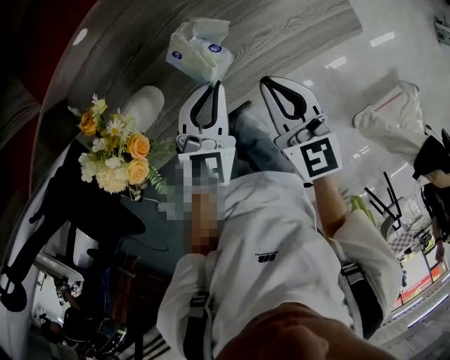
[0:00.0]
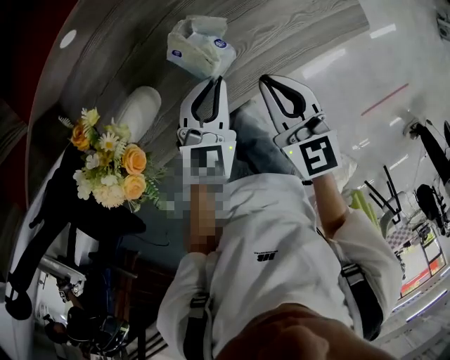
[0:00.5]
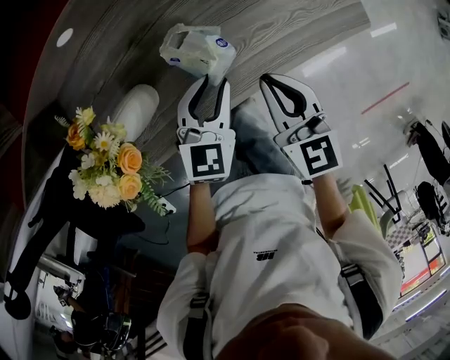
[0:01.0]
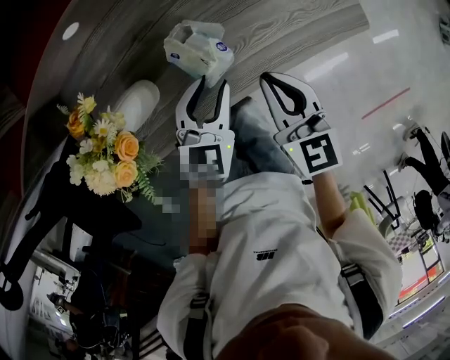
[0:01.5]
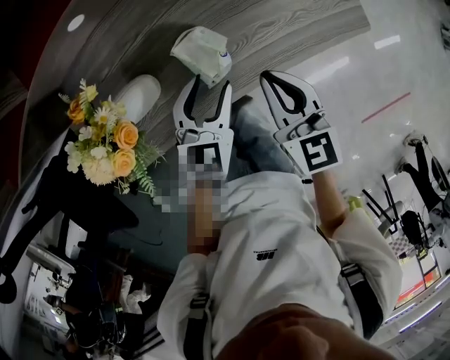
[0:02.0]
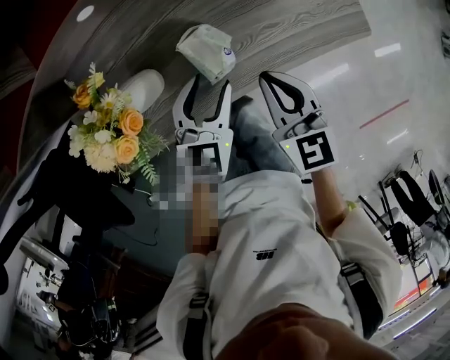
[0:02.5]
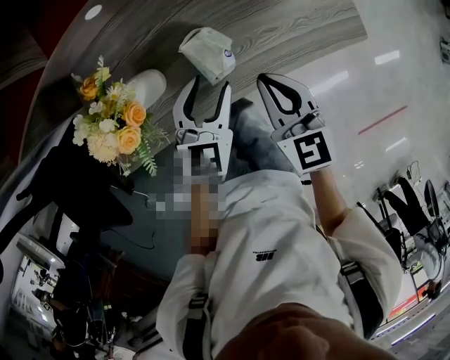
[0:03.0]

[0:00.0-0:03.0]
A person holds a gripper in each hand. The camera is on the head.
0:00.0 to 0:01.5: The left gripper opens its fingers.
0:01.5 to 0:03.0: The grippers stay close to where they were, moving slightly.

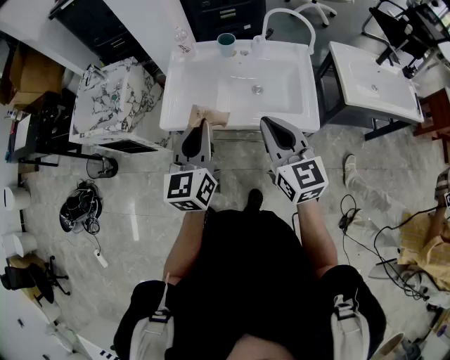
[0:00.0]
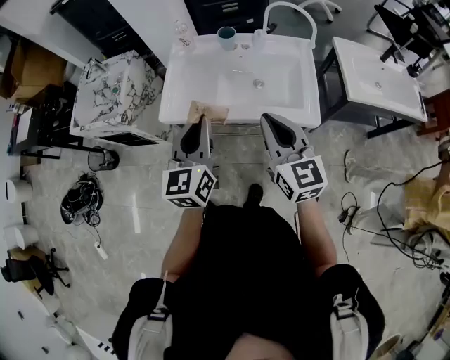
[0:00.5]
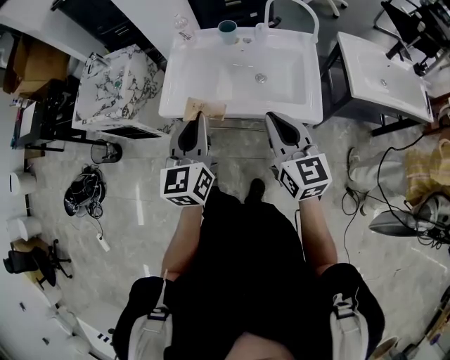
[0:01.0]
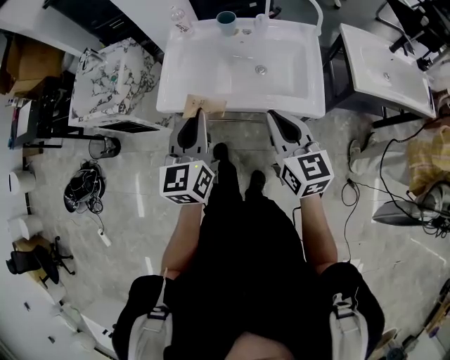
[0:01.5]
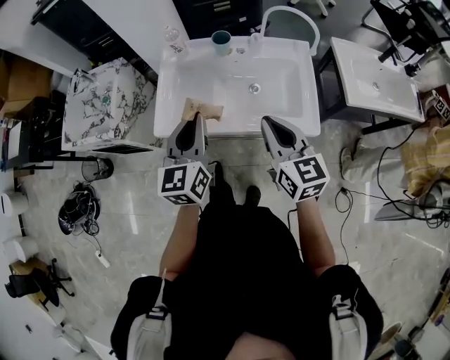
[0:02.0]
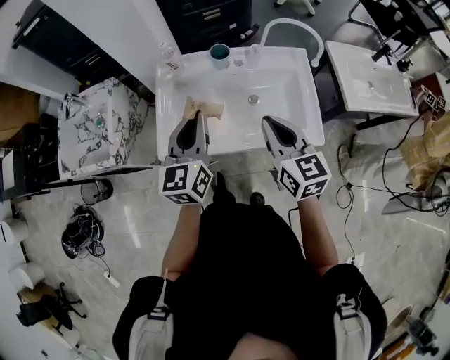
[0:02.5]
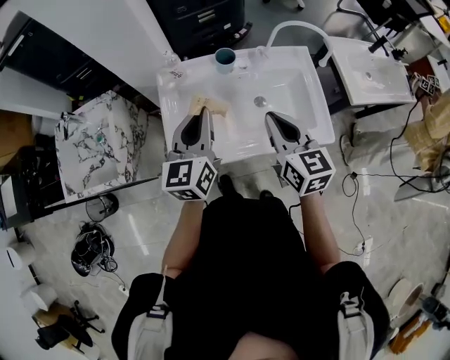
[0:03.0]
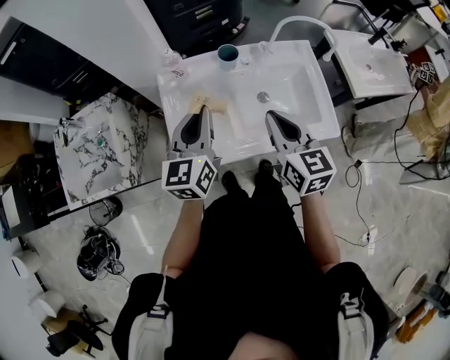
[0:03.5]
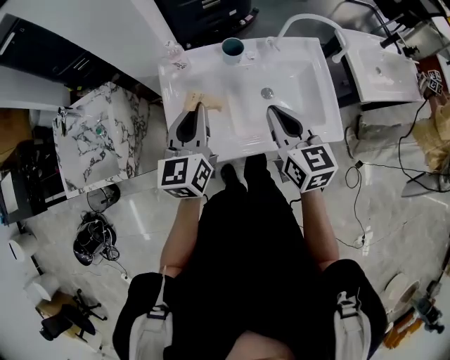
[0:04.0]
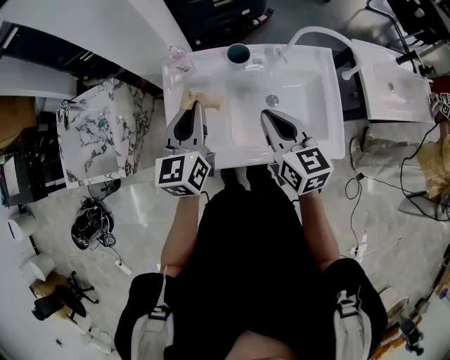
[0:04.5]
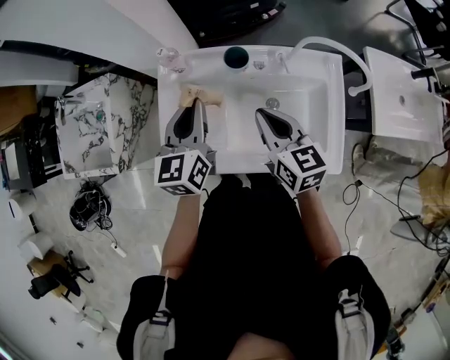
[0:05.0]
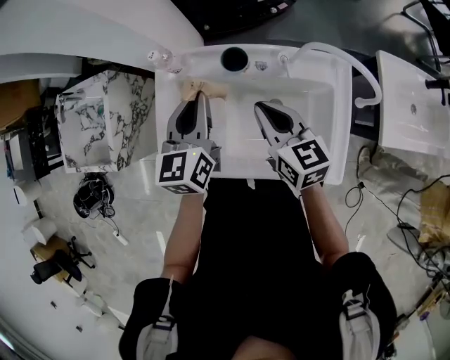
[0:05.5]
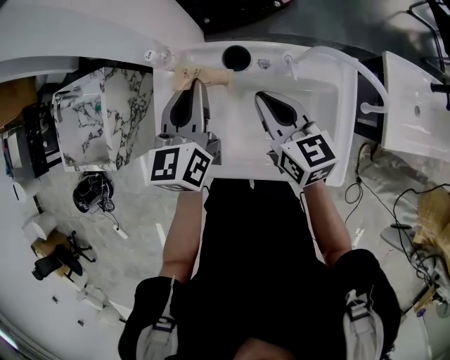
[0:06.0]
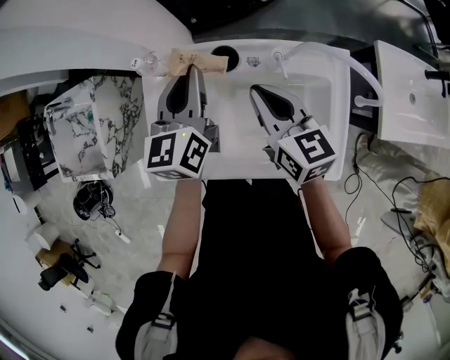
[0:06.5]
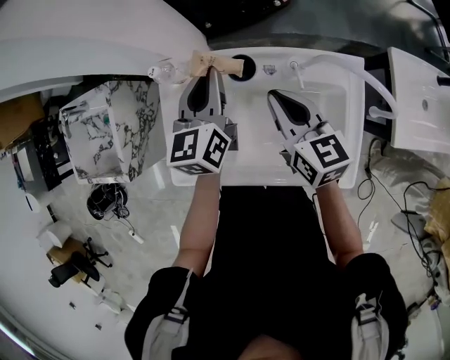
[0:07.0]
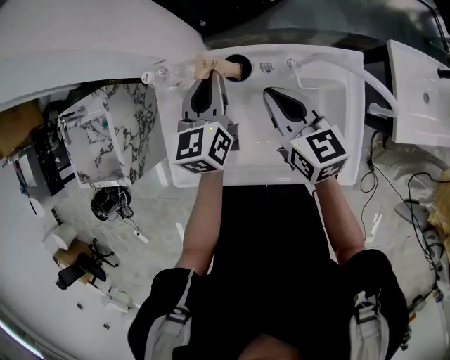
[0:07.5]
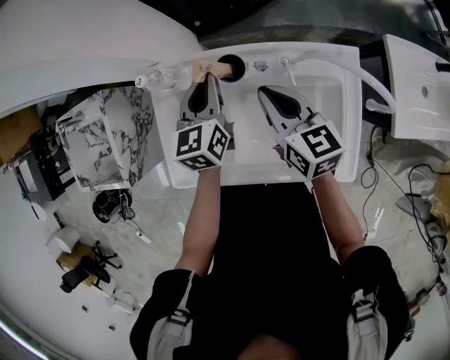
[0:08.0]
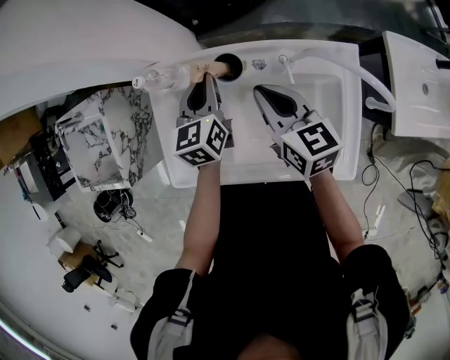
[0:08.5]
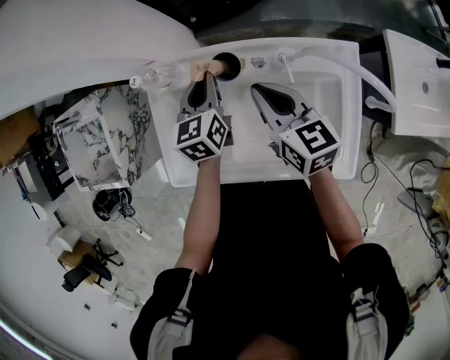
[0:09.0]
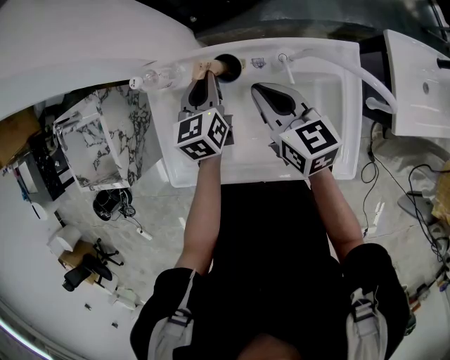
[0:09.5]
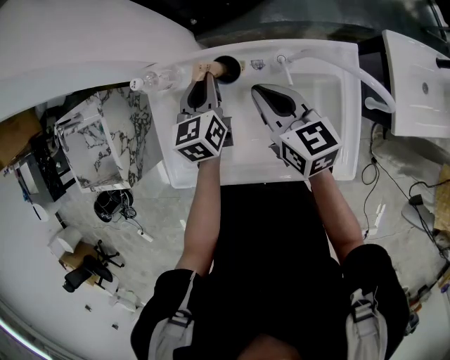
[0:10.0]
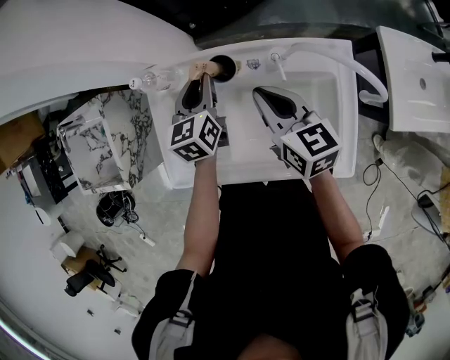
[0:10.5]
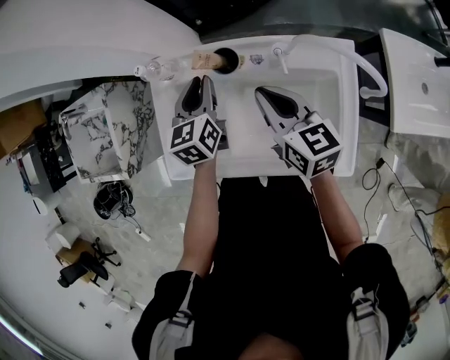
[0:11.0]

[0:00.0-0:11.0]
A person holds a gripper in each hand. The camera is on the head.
0:00.0 to 0:02.0: Both grippers travel together forward, about 5 cm.
0:02.0 to 0:03.5: The grippers both shift forward and to the left by some 15 cm.
0:03.5 to 0:05.5: The left gripper moves forward and to the right, approximately 15 cm. The right gripper is displaced forward and downward by about 15 cm, and turns by some 20 degrees.
0:05.5 to 0:07.5: Both grippers move forward, roughly 5 cm.
0:07.5 to 0:09.0: The left gripper is displaced downward by approximately 5 cm.
0:09.0 to 0:11.0: There are only small adjustments of the grippers.

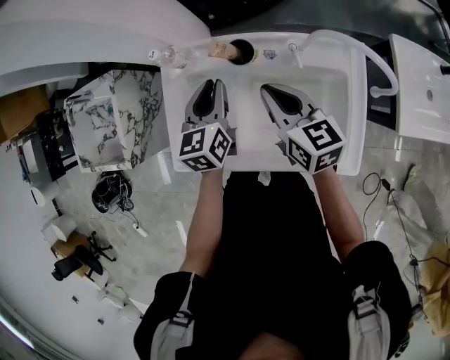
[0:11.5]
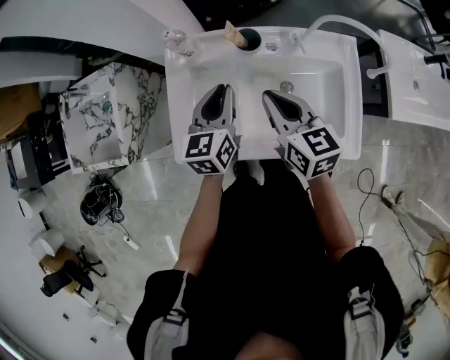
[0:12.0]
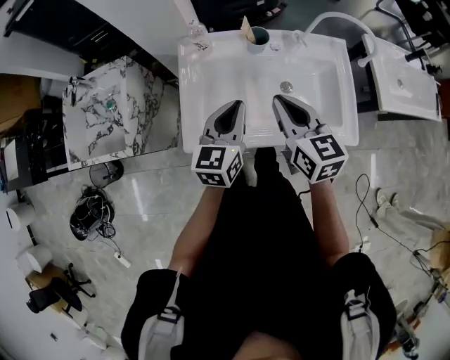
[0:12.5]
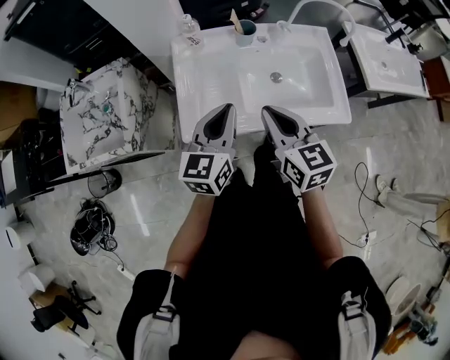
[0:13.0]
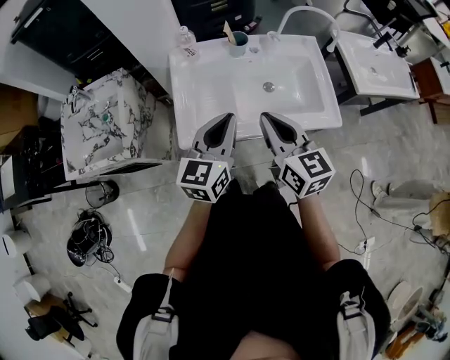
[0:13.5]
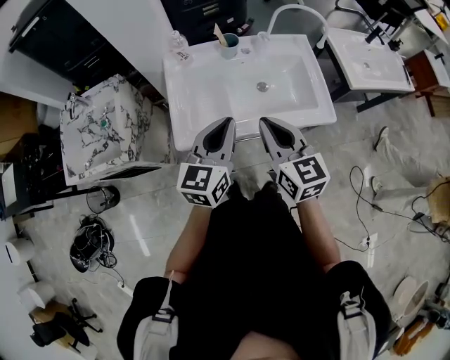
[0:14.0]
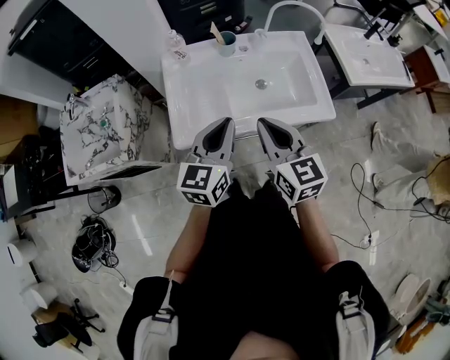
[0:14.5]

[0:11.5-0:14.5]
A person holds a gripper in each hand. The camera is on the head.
0:11.5 to 0:13.0: The left gripper is displaced backward by some 25 cm, and swivels about 30 degrees. Meanwhile the right gripper travels backward and to the left by about 25 cm.
0:13.0 to 0:14.5: Both grippers travel together backward, about 5 cm.

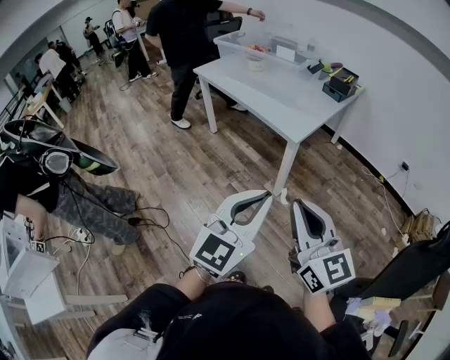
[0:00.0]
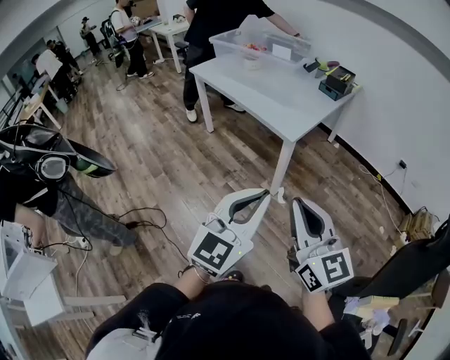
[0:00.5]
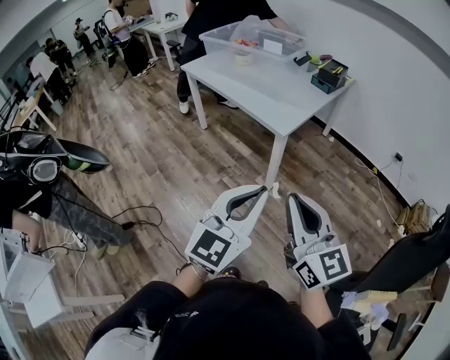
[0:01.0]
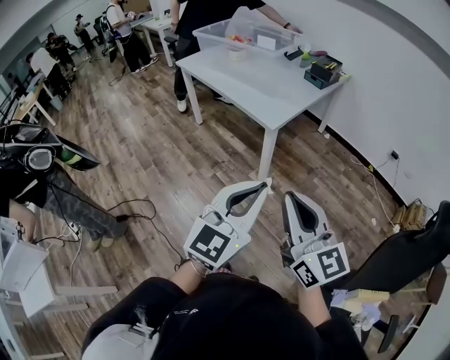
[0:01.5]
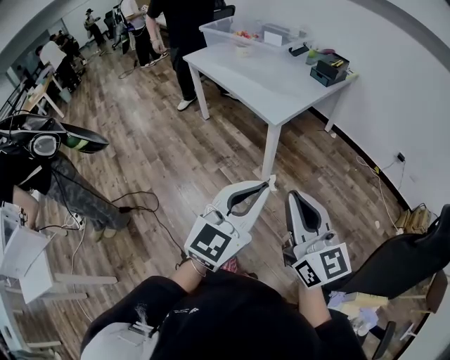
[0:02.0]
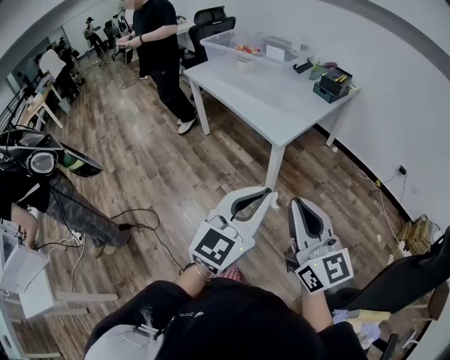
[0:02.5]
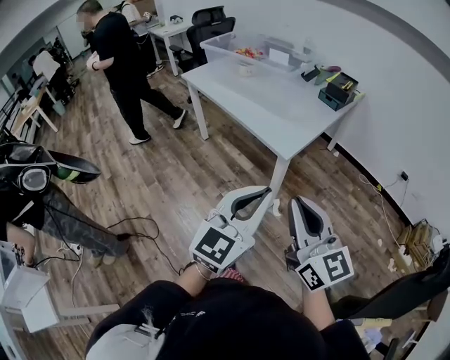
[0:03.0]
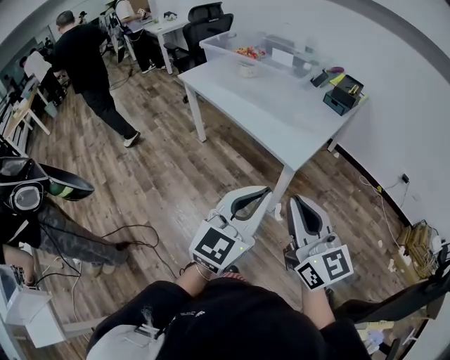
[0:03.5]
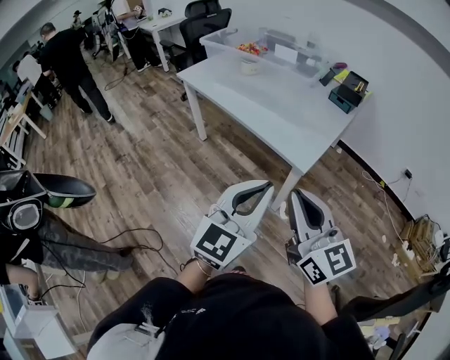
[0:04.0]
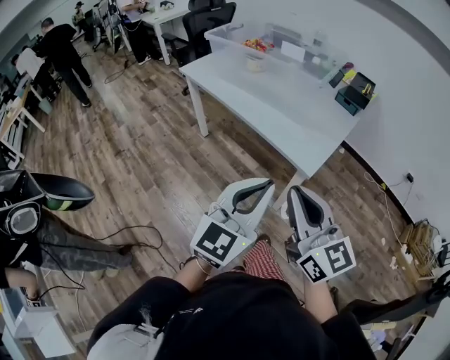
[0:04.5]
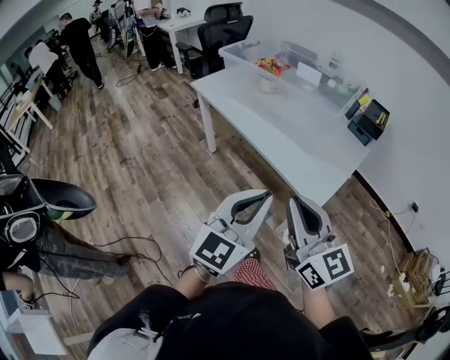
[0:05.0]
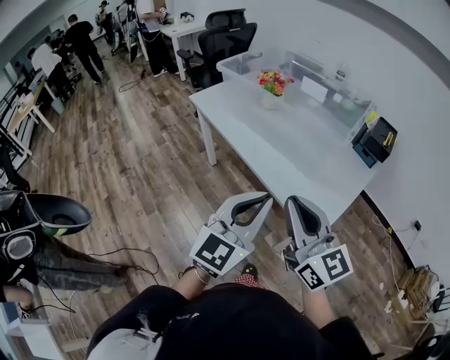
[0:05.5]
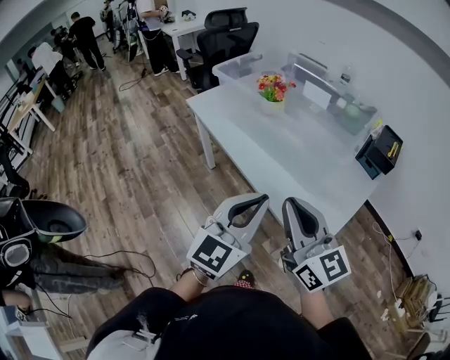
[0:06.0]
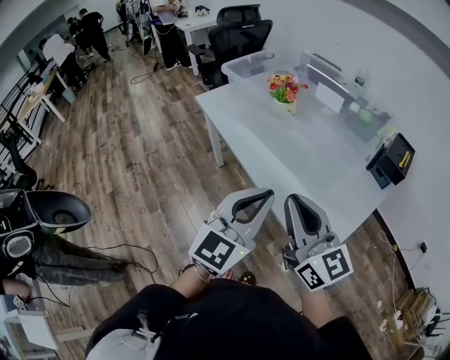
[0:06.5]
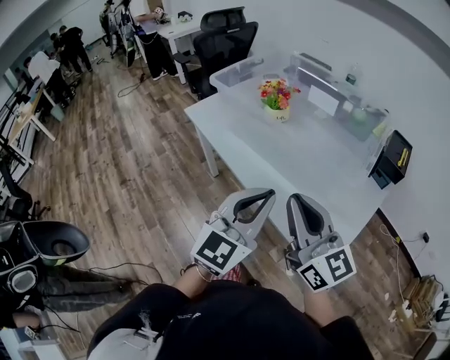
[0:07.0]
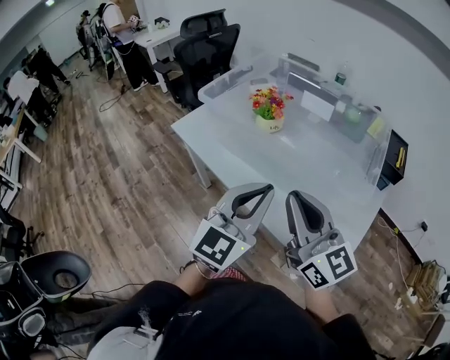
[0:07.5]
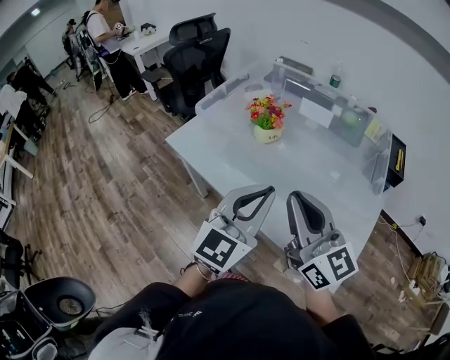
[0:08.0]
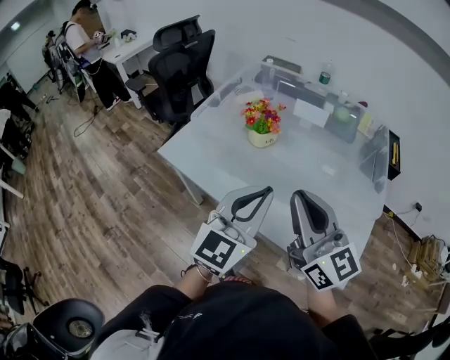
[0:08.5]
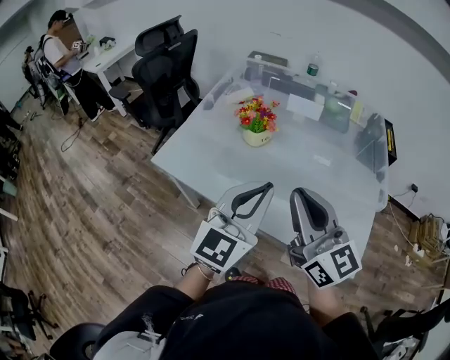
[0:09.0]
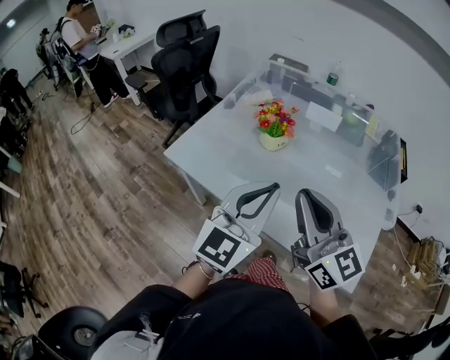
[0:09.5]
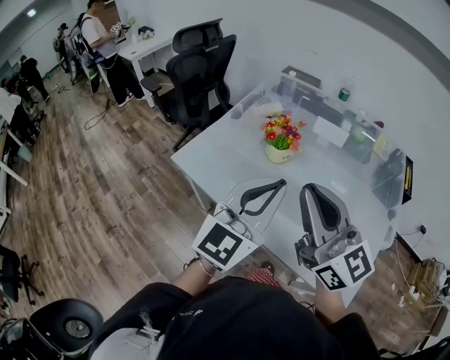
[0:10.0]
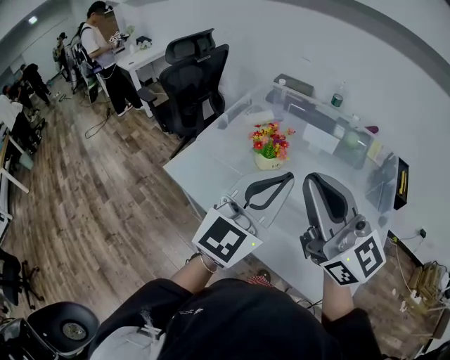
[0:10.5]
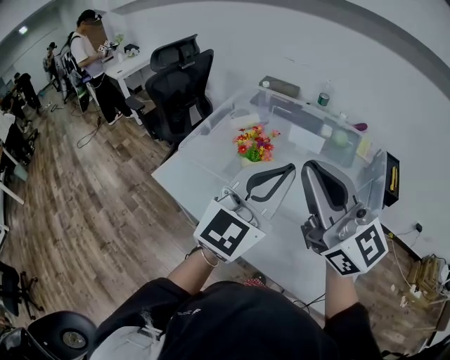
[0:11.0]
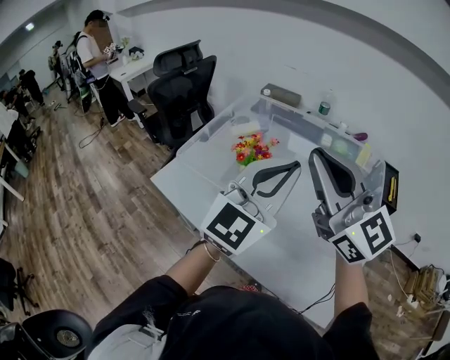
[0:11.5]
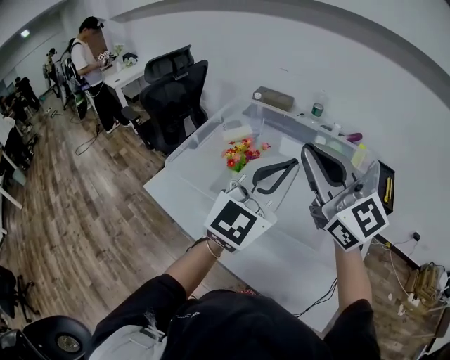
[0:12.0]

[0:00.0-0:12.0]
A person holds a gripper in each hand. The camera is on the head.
0:00.0 to 0:02.0: Both grippers move to the right, roughly 10 cm.
0:02.0 to 0:04.0: Both grippers move forward and to the left, approximately 30 cm.
0:04.0 to 0:06.0: The two grippers go some 30 cm forward.
0:06.0 to 0:08.0: The right gripper is displaced forward and to the left by roughly 20 cm. The left gripper heads forward, covering approximately 20 cm.
0:08.0 to 0:10.0: The left gripper goes some 10 cm forward and to the left; the right gripper shifts approximately 10 cm to the left, forward and upward.
0:10.0 to 0:12.0: The grippers both shift to the right, forward and upward by some 20 cm.
